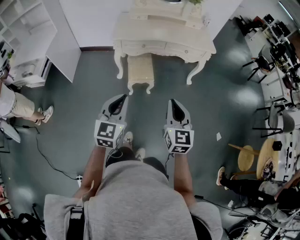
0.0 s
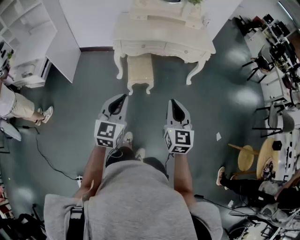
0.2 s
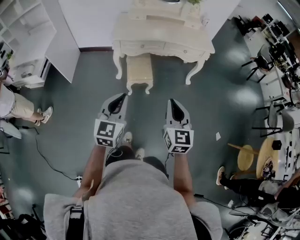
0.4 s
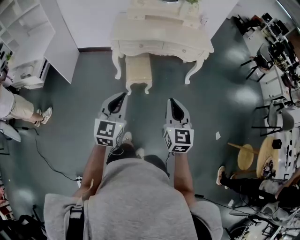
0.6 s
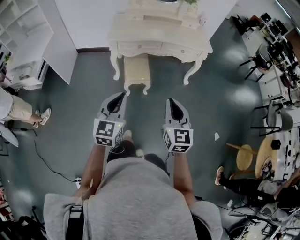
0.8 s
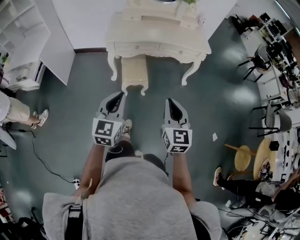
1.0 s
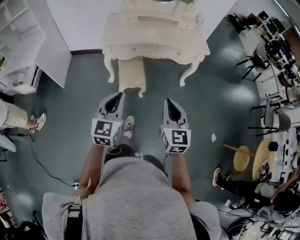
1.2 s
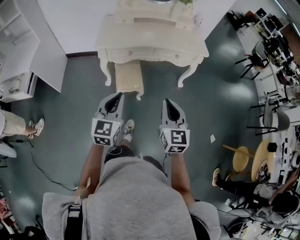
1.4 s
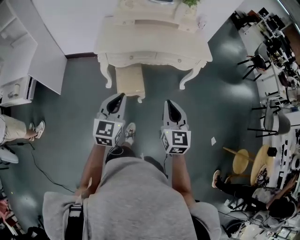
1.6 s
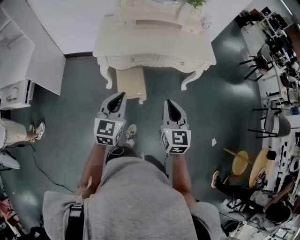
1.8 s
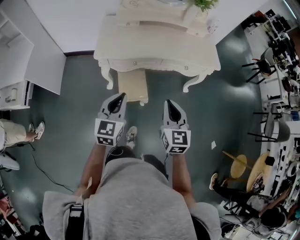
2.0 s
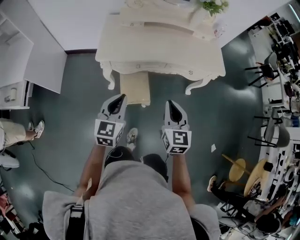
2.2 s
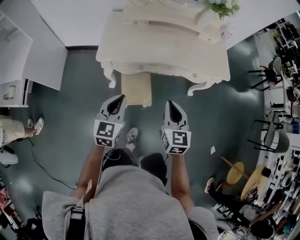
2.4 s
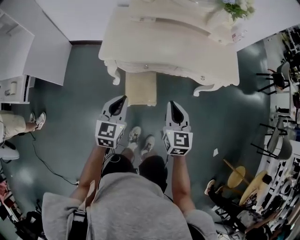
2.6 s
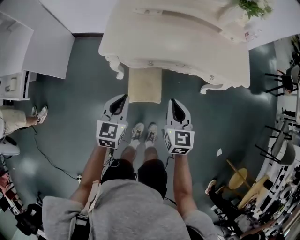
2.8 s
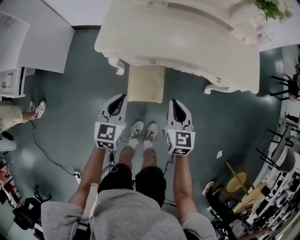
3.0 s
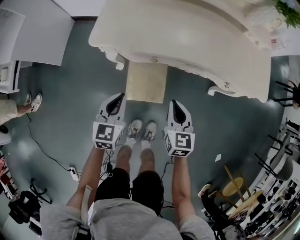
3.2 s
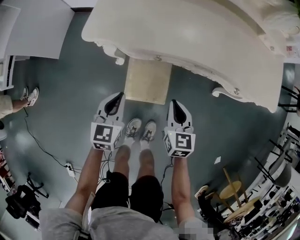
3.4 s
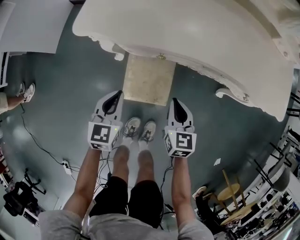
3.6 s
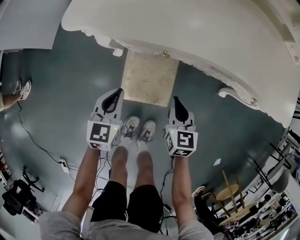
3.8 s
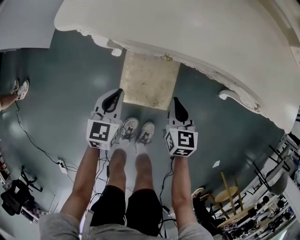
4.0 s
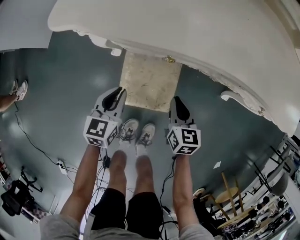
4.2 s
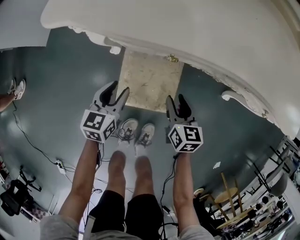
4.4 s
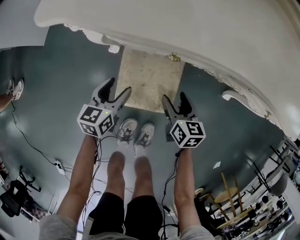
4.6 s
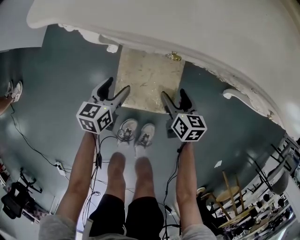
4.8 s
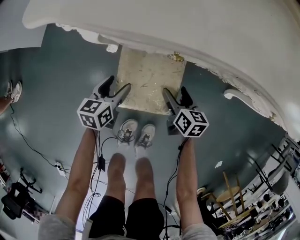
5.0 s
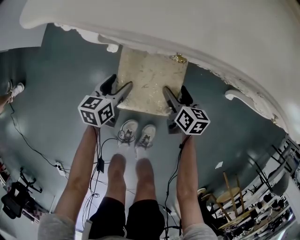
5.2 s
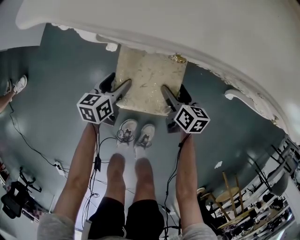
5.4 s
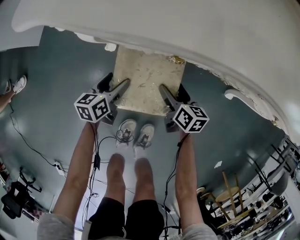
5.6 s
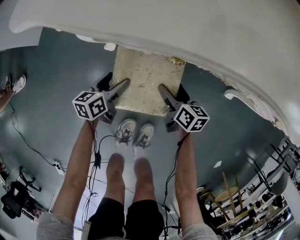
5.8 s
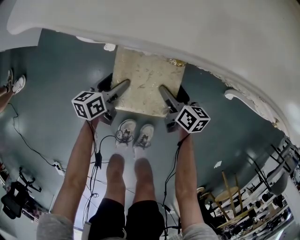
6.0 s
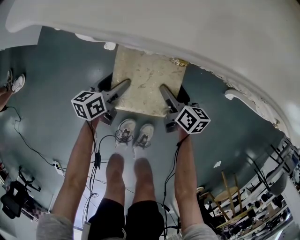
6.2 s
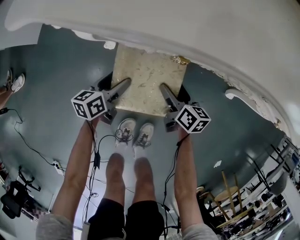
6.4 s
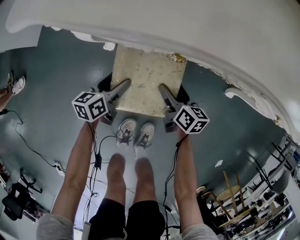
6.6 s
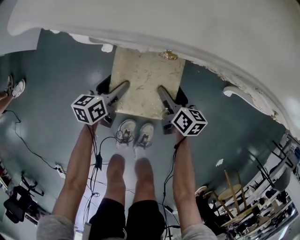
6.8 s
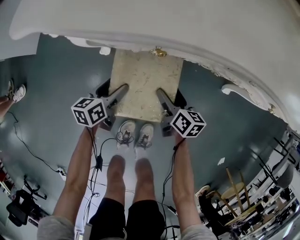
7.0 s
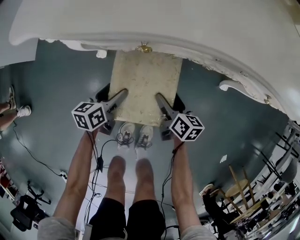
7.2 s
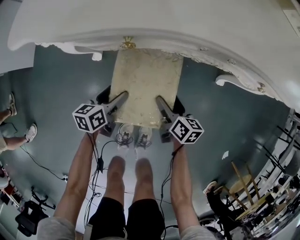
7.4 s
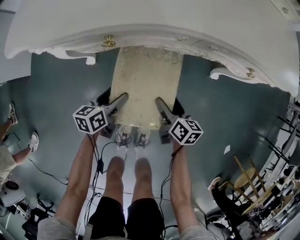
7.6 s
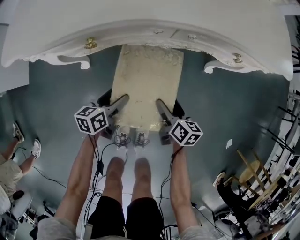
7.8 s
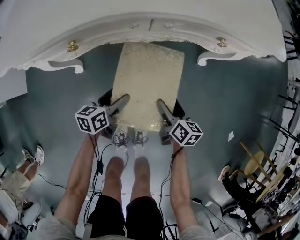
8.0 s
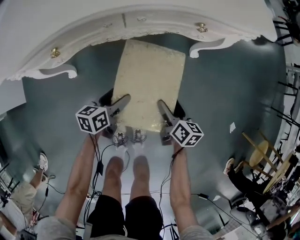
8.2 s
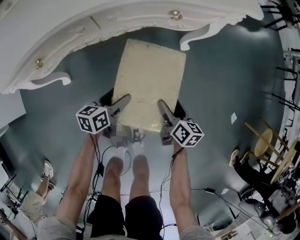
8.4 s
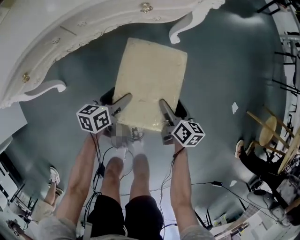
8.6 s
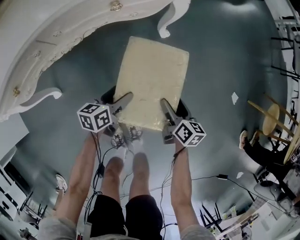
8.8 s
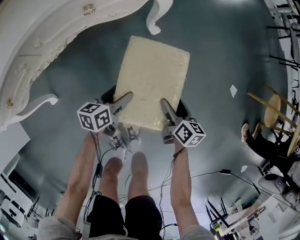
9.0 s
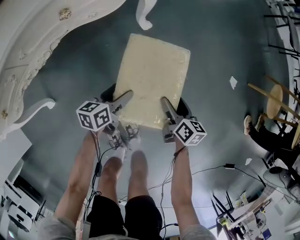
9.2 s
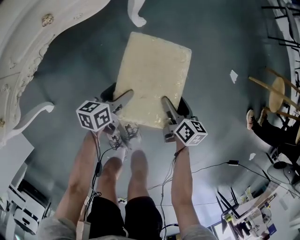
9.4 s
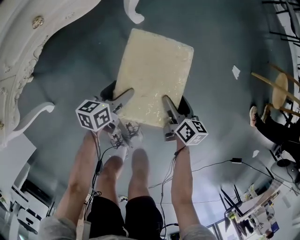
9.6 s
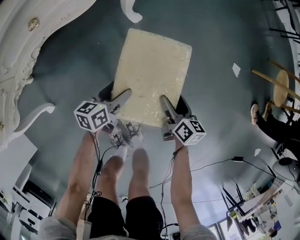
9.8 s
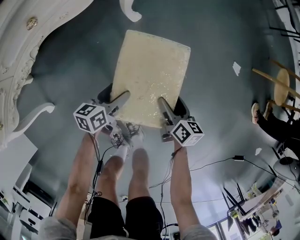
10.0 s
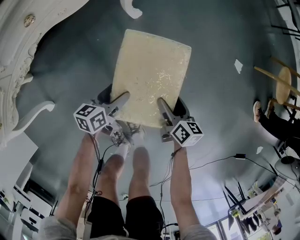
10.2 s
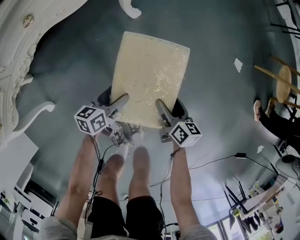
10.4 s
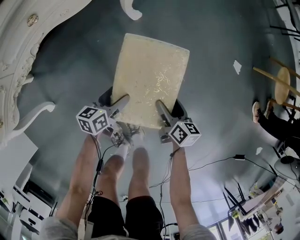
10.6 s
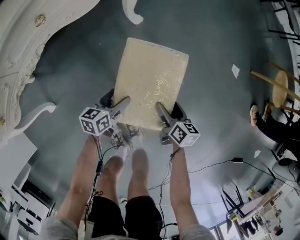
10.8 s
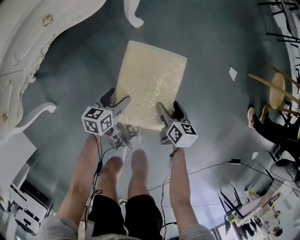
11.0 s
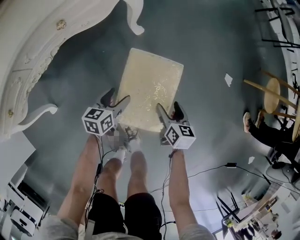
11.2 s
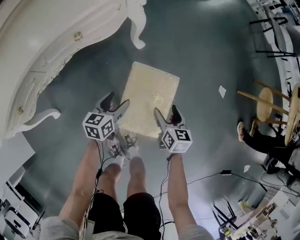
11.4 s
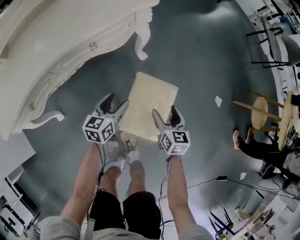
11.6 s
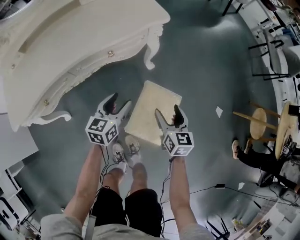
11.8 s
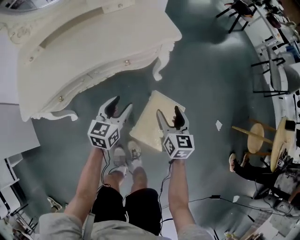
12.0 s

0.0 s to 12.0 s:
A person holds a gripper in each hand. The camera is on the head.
0.0 to 1.6 s: Both grippers move forward, about 20 cm.
1.6 to 3.0 s: The grippers both shift forward and downward by some 35 cm. The left gripper rotates approximately 20 degrees.
3.0 to 4.4 s: The grippers both shift downward by some 35 cm. The left gripper opens its fingers, while the right gripper turns by about 20 degrees, and opens up.
4.4 to 6.0 s: The grippers both shift downward by approximately 10 cm. The left gripper turns by approximately 30 degrees, and opens up; the right gripper changes its angle by some 20 degrees, and opens.
6.0 to 7.6 s: The left gripper moves to the right and upward, some 15 cm; the right gripper goes about 15 cm to the right, backward and upward.
7.6 to 9.0 s: The right gripper shifts by roughly 40 cm, and turns by some 40 degrees. The left gripper changes place by approximately 35 cm, and changes its angle by roughly 40 degrees.
9.0 to 10.4 s: The left gripper travels to the right and downward by about 10 cm, while the right gripper shifts about 10 cm to the right, downward and backward.
10.4 to 12.0 s: Both grippers travel together upward, about 40 cm. The right gripper changes its angle by some 40 degrees. Meanwhile the left gripper turns by approximately 40 degrees.

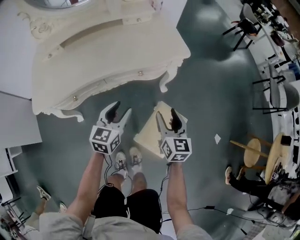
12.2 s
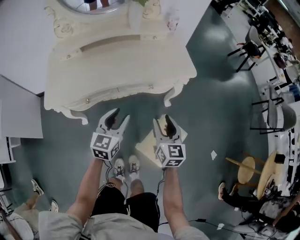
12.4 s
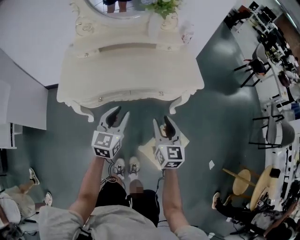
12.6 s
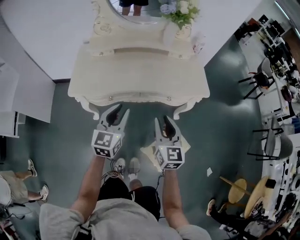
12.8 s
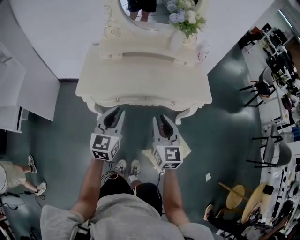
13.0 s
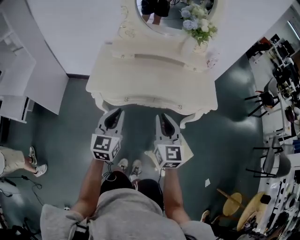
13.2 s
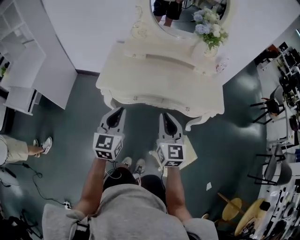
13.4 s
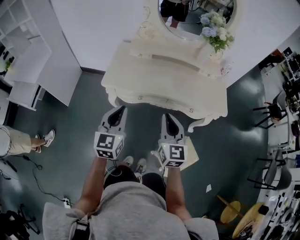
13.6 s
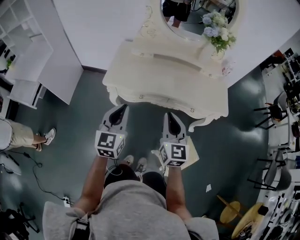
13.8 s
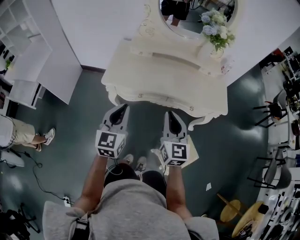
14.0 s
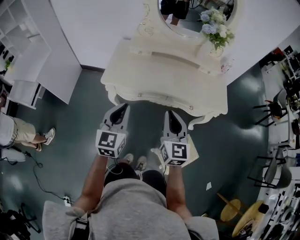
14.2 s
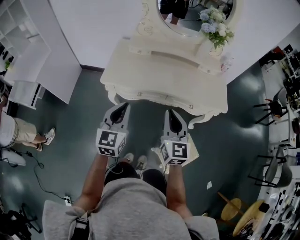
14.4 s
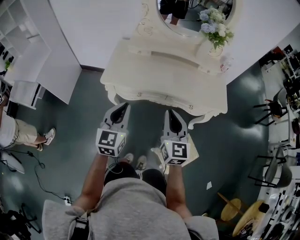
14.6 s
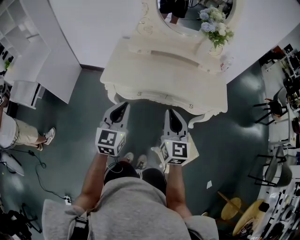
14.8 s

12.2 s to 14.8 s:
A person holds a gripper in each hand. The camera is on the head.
12.2 to 13.4 s: The right gripper shifts by approximately 35 cm, swivels roughly 30 degrees, and closes its fingers, while the left gripper ends up roughly 35 cm from where it was, swivels some 40 degrees, and closes its fingers.
13.4 to 14.8 s: There are only small adjustments of the grippers.

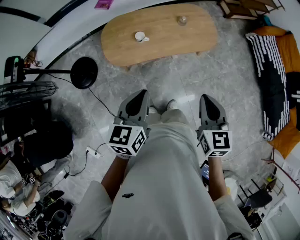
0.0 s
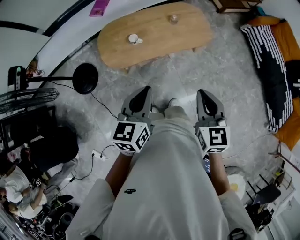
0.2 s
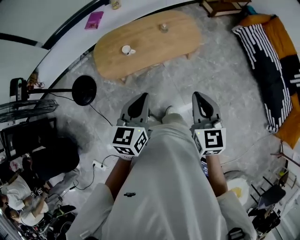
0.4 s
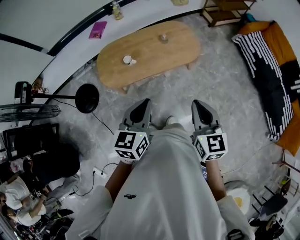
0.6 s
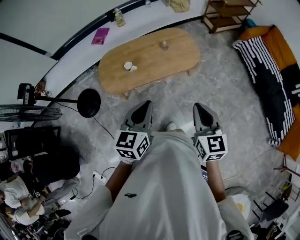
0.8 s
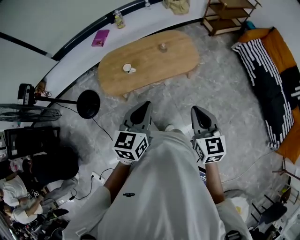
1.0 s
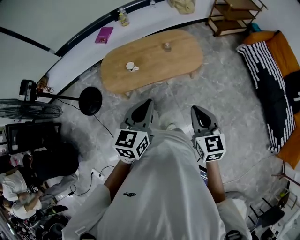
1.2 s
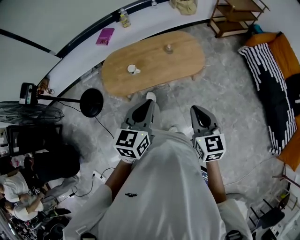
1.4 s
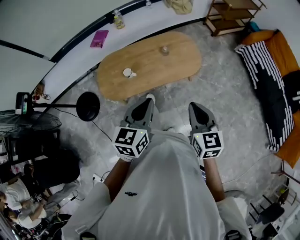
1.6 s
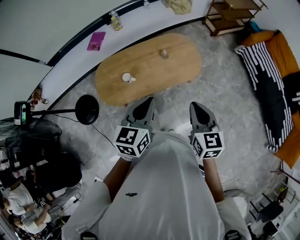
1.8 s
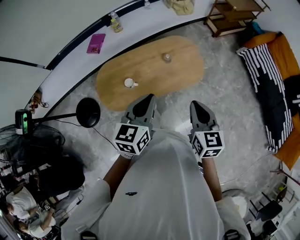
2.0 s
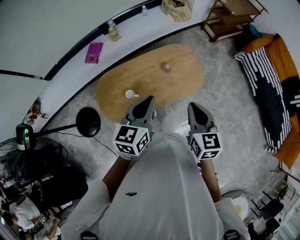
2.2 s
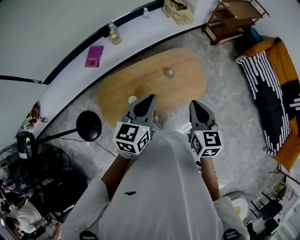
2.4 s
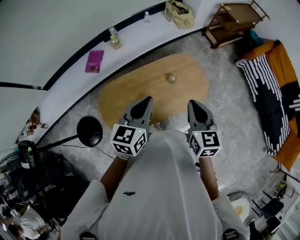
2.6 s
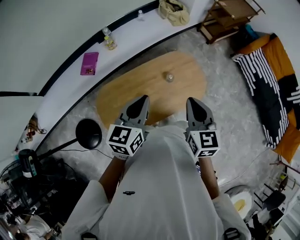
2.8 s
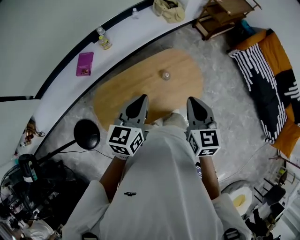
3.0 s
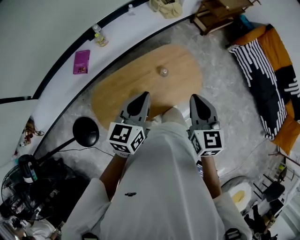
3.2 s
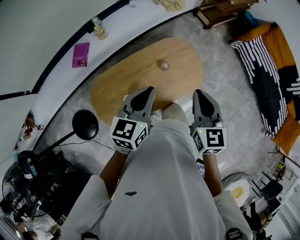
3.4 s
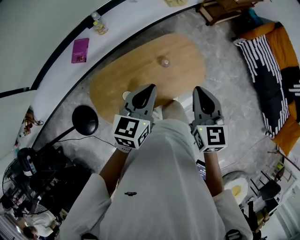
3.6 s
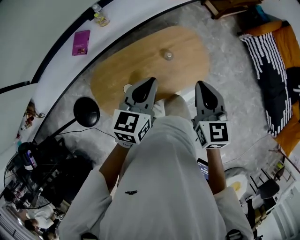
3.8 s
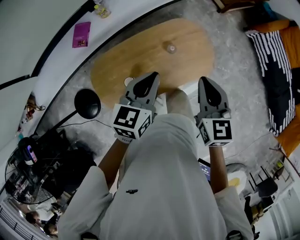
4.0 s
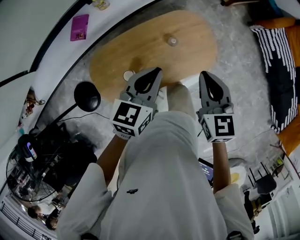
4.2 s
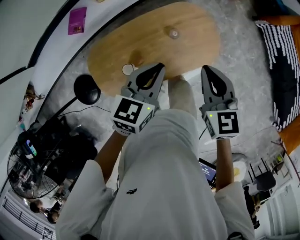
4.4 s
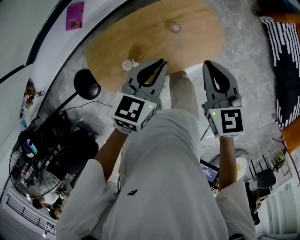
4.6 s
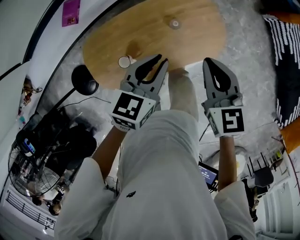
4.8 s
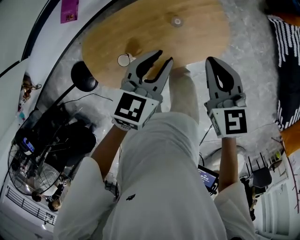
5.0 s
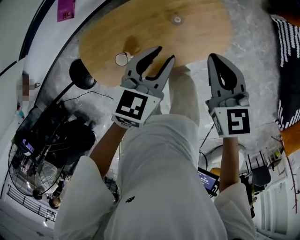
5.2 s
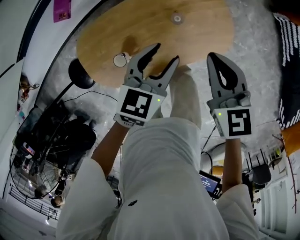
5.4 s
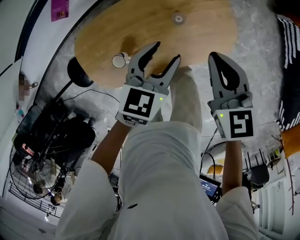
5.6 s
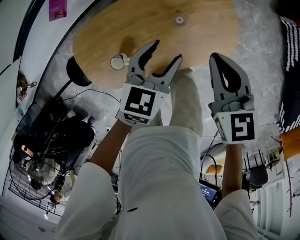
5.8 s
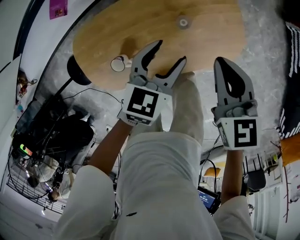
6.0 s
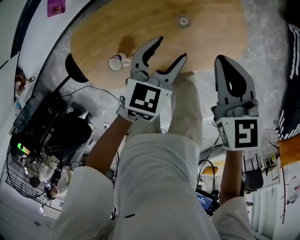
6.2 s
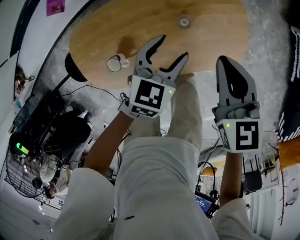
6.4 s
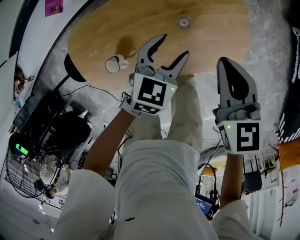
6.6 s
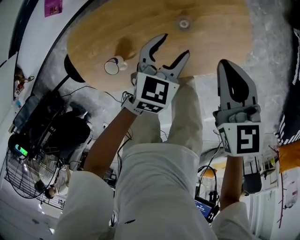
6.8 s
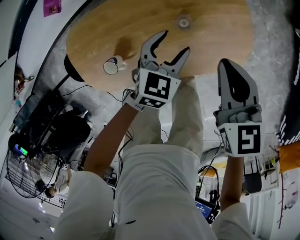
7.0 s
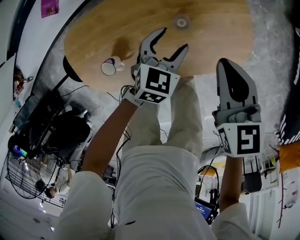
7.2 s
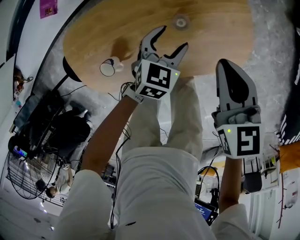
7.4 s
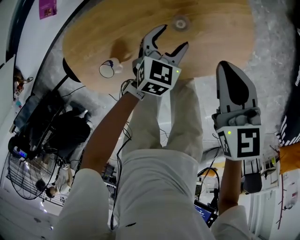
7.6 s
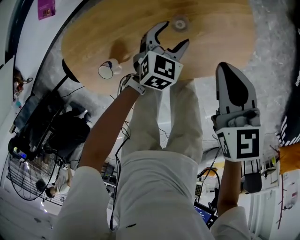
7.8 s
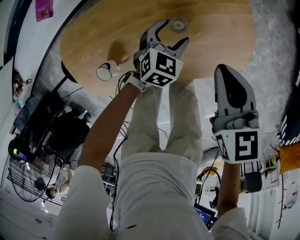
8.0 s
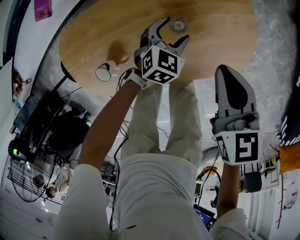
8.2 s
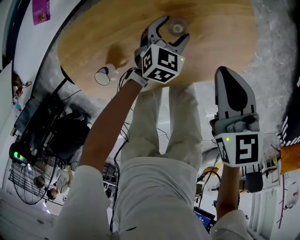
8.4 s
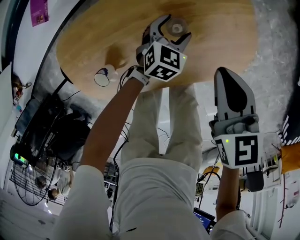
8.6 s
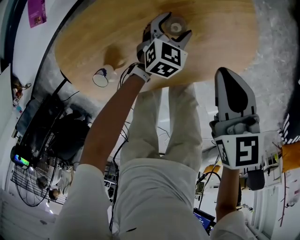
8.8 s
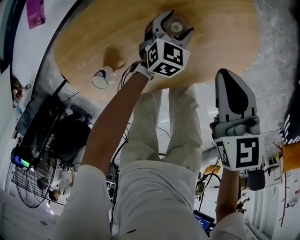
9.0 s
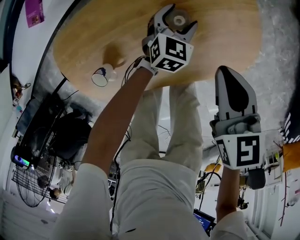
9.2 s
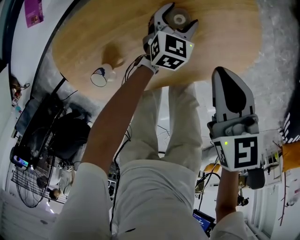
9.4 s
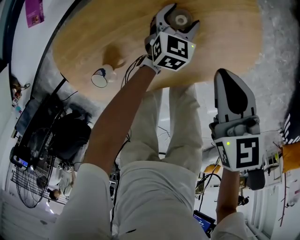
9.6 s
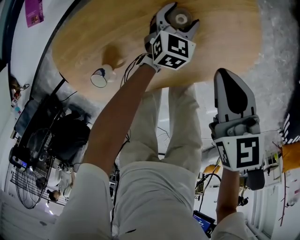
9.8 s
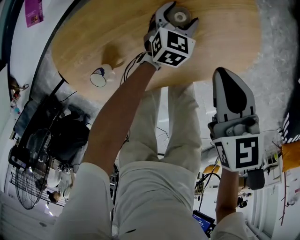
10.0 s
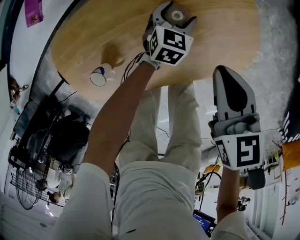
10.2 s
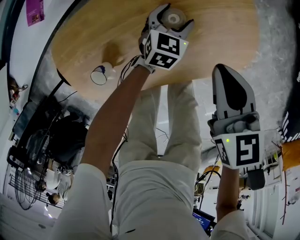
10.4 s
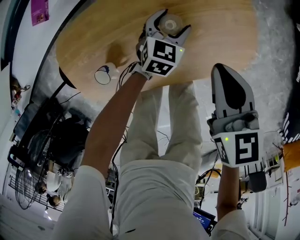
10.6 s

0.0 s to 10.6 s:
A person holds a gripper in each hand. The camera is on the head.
0.0 to 1.6 s: Both grippers travel together to the right and forward, approximately 15 cm.
1.6 to 3.0 s: The two grippers go roughly 30 cm forward and to the left.
3.0 to 4.6 s: The right gripper heads downward and forward, covering roughly 10 cm, while the left gripper is displaced downward, to the right and forward by about 15 cm.
4.6 to 6.0 s: The two grippers go roughly 15 cm downward and forward. The left gripper opens its fingers.
6.0 to 7.6 s: The left gripper moves downward, some 20 cm; the right gripper travels downward by approximately 10 cm.
7.6 to 9.0 s: The left gripper moves downward and forward, some 10 cm.
9.0 to 10.6 s: There are only small adjustments of the grippers.
